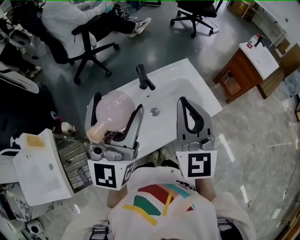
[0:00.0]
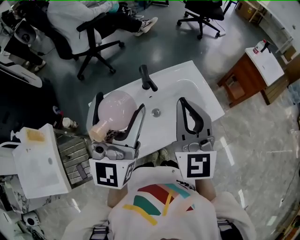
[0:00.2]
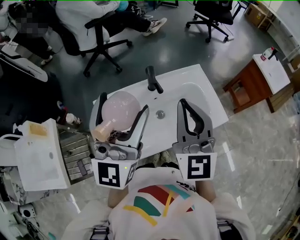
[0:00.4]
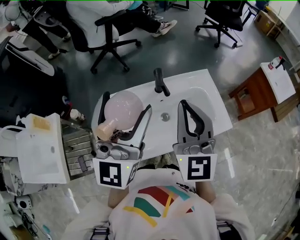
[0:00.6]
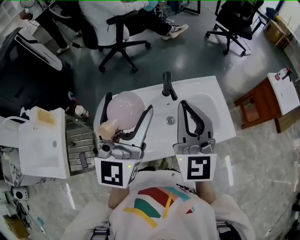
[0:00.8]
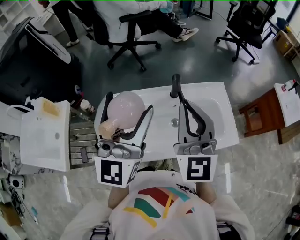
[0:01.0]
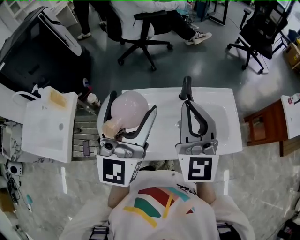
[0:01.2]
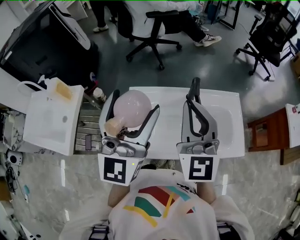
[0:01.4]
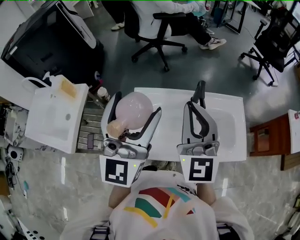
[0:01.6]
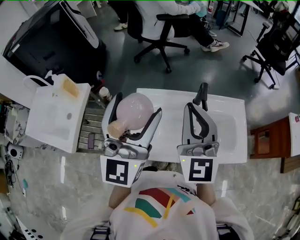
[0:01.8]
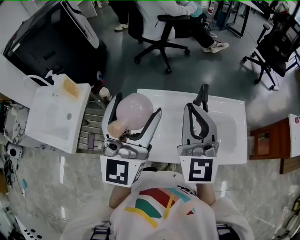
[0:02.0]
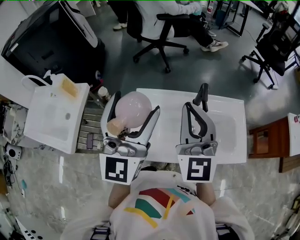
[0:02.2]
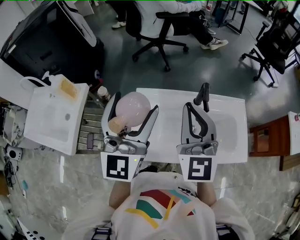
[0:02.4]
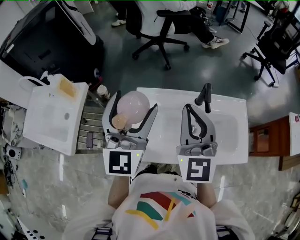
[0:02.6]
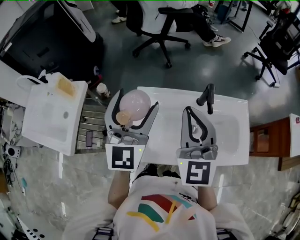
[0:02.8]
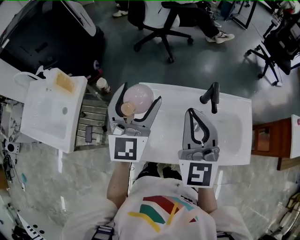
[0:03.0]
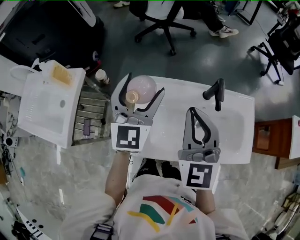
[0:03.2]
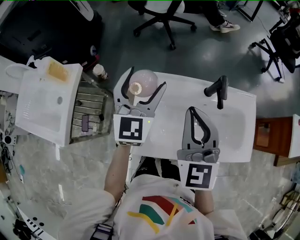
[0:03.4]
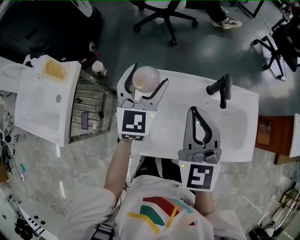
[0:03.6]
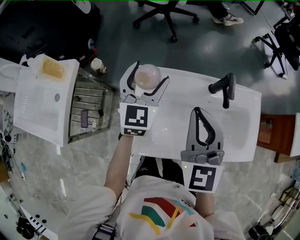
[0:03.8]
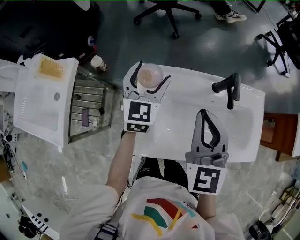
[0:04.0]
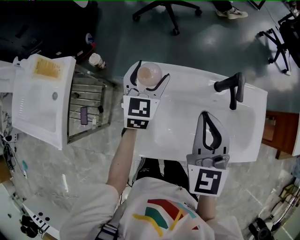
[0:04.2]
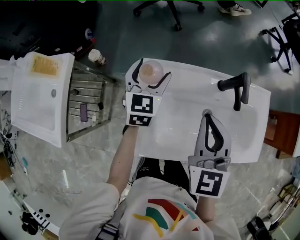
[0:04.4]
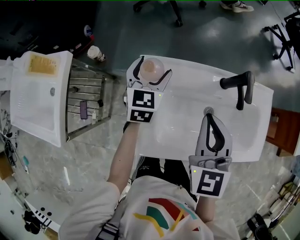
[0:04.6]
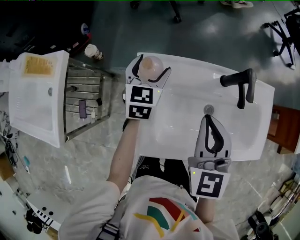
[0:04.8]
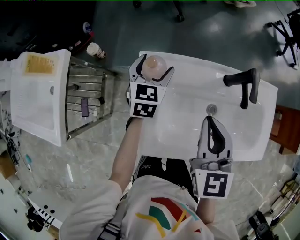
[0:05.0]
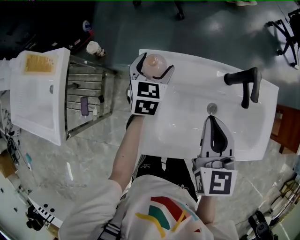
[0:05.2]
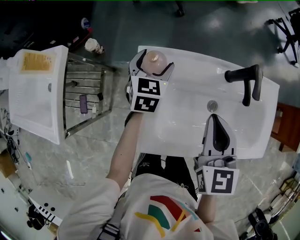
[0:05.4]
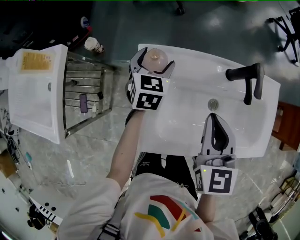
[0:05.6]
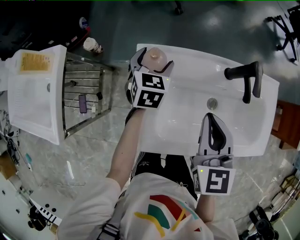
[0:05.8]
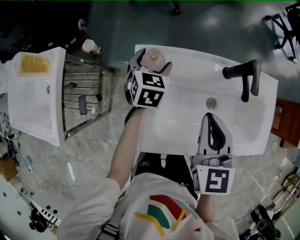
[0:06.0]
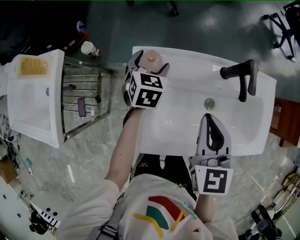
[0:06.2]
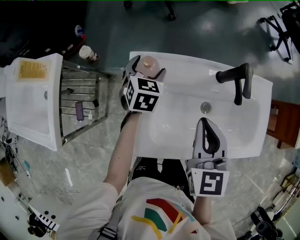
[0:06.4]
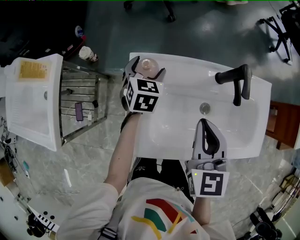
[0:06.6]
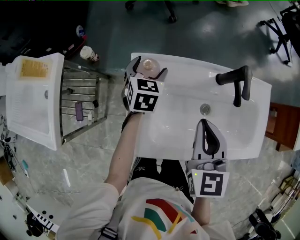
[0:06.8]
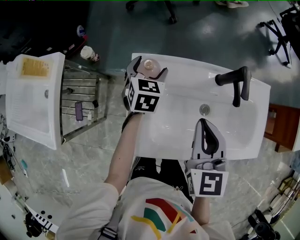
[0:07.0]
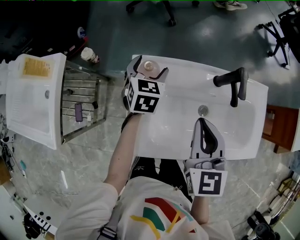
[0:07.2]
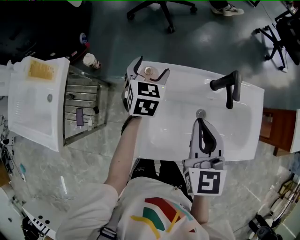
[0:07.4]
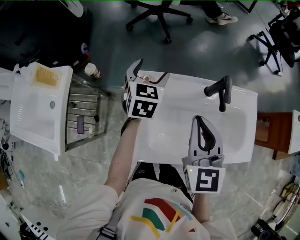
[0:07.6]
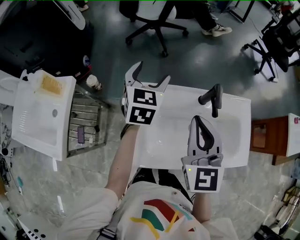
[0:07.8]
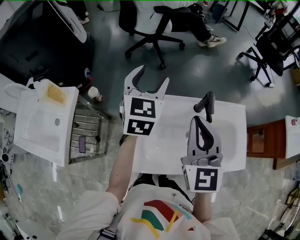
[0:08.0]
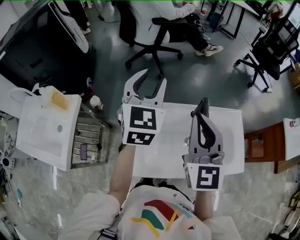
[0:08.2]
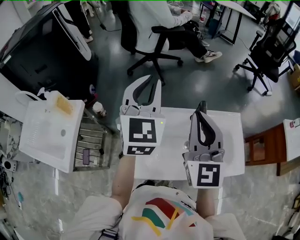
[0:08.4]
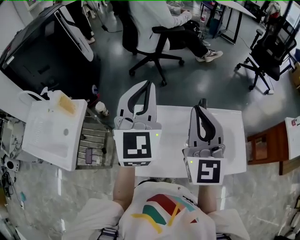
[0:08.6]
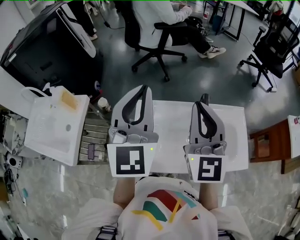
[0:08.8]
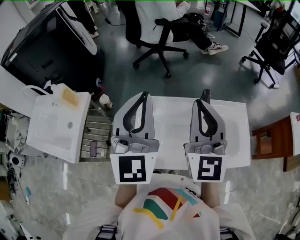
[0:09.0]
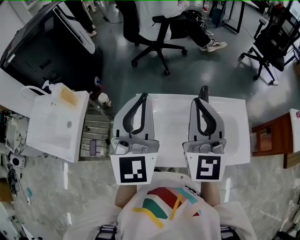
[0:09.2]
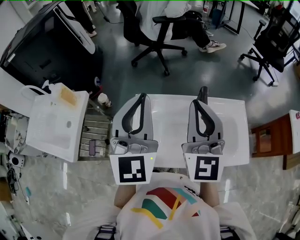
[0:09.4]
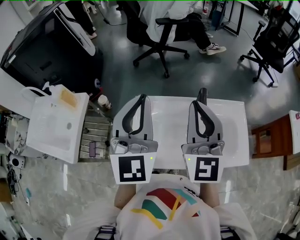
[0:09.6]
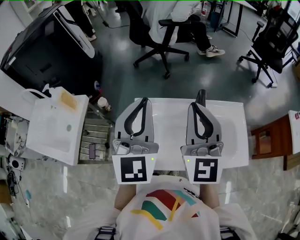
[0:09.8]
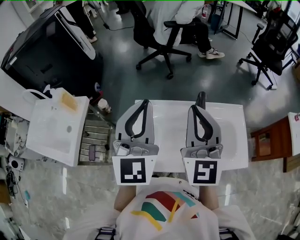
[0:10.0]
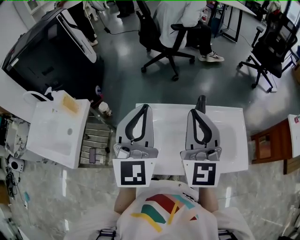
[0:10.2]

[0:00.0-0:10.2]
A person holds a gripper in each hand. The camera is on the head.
0:00.0 to 0:01.4: The left gripper ends up approximately 10 cm from where it was, and changes its angle by some 30 degrees; the right gripper shifts by approximately 10 cm, and swivels approximately 30 degrees.
0:01.4 to 0:03.0: The right gripper goes approximately 10 cm downward and to the left; the left gripper moves downward, forward and to the left, some 15 cm.
0:03.0 to 0:04.4: The right gripper heads downward, covering about 10 cm. The left gripper moves downward and forward, roughly 25 cm, and swivels approximately 30 degrees.
0:04.4 to 0:05.8: Both grippers move downward, some 5 cm.
0:05.8 to 0:07.2: The grippers move only a little.
0:07.2 to 0:08.8: The right gripper is displaced upward by roughly 20 cm, and points its fingers about 30 degrees further upward, while the left gripper heads upward, covering roughly 40 cm, tilts its fingers about 50 degrees upward, and closes up.
0:08.8 to 0:10.2: There are only small adjustments of the grippers.

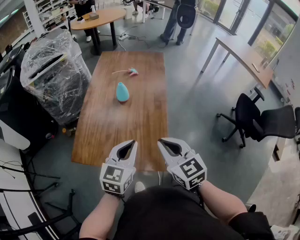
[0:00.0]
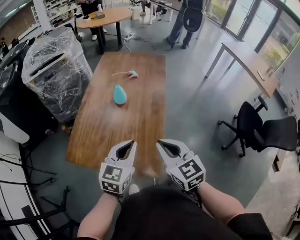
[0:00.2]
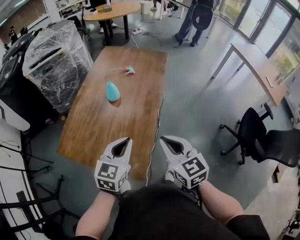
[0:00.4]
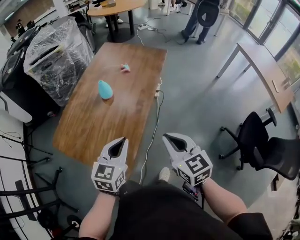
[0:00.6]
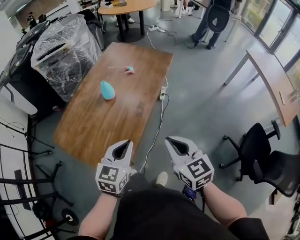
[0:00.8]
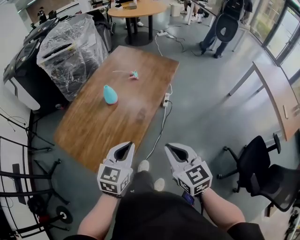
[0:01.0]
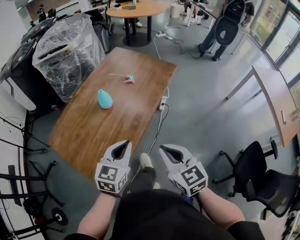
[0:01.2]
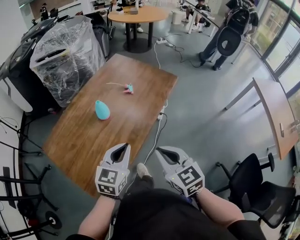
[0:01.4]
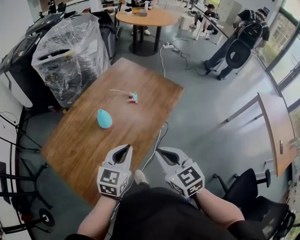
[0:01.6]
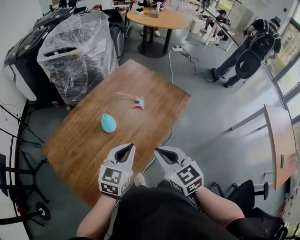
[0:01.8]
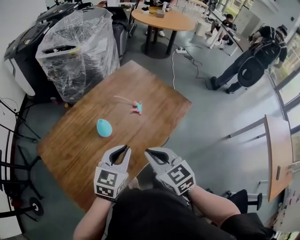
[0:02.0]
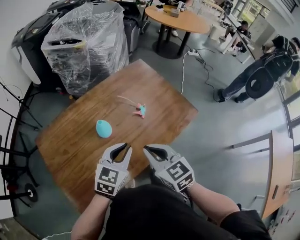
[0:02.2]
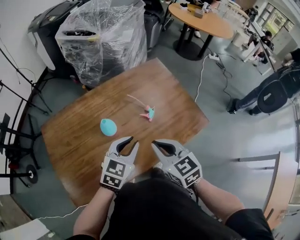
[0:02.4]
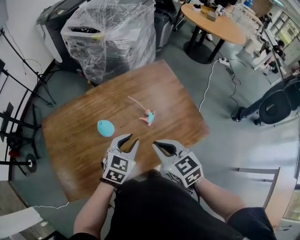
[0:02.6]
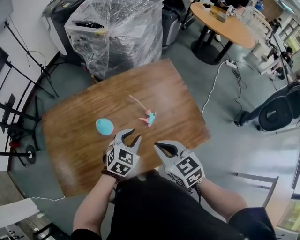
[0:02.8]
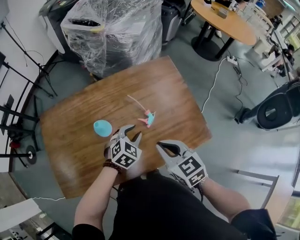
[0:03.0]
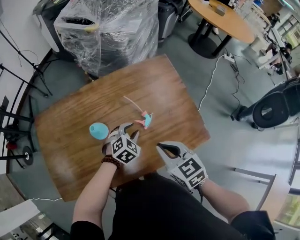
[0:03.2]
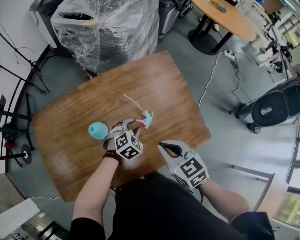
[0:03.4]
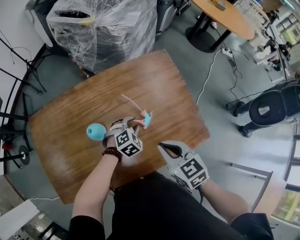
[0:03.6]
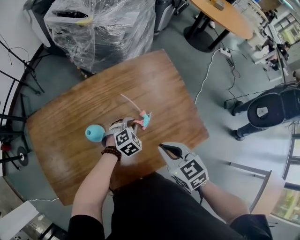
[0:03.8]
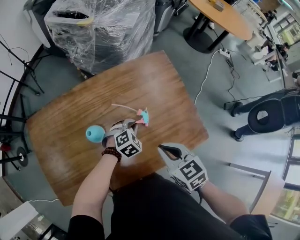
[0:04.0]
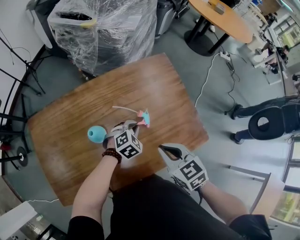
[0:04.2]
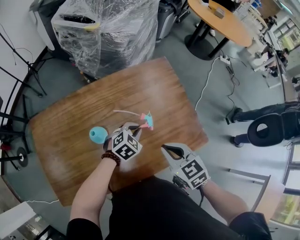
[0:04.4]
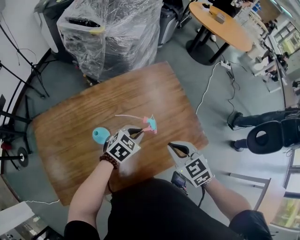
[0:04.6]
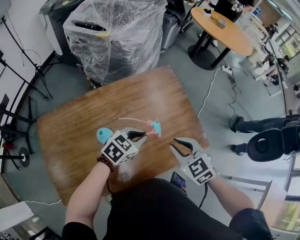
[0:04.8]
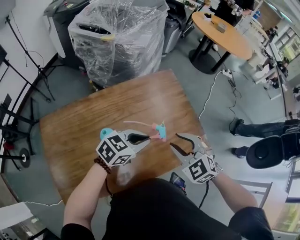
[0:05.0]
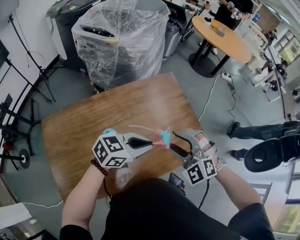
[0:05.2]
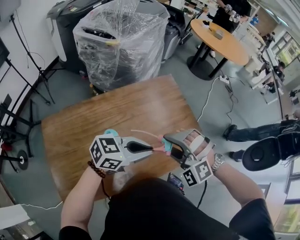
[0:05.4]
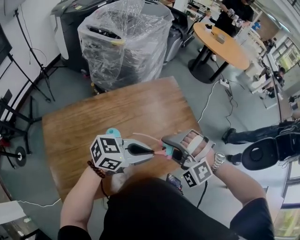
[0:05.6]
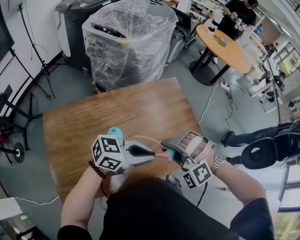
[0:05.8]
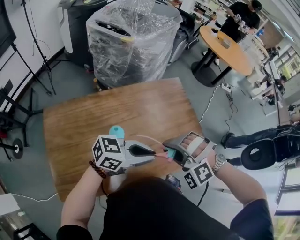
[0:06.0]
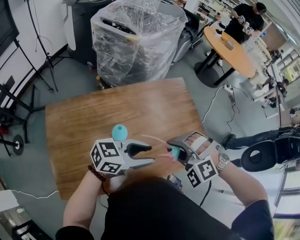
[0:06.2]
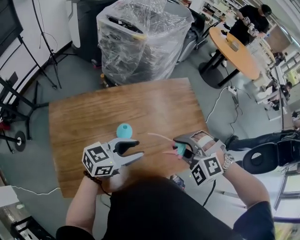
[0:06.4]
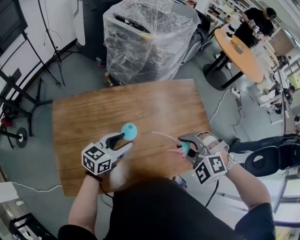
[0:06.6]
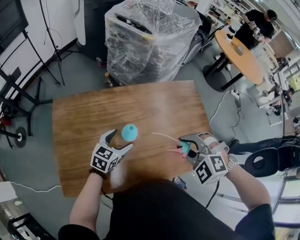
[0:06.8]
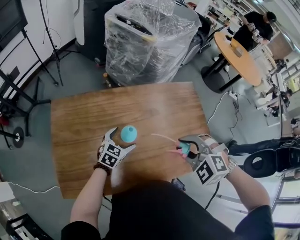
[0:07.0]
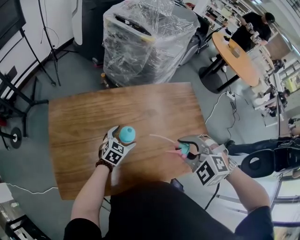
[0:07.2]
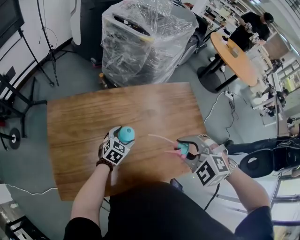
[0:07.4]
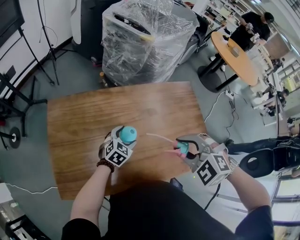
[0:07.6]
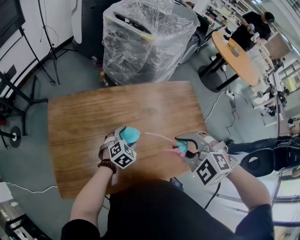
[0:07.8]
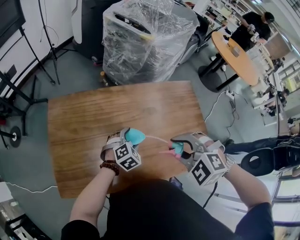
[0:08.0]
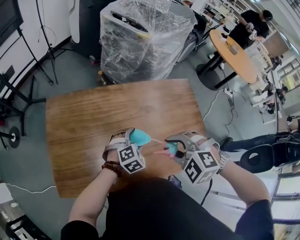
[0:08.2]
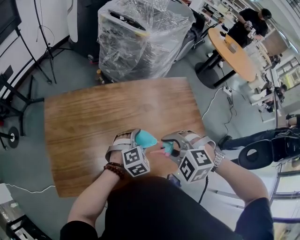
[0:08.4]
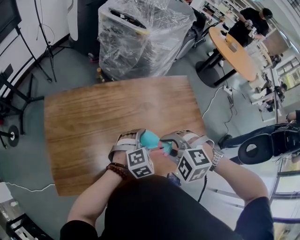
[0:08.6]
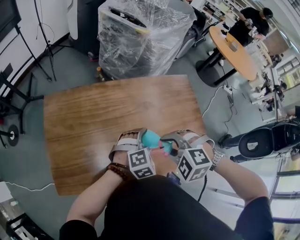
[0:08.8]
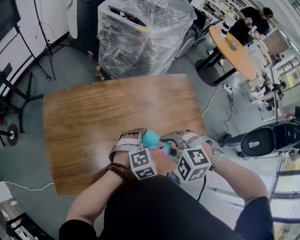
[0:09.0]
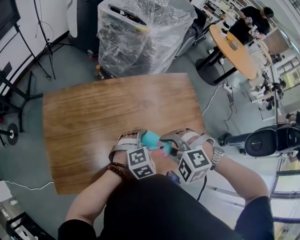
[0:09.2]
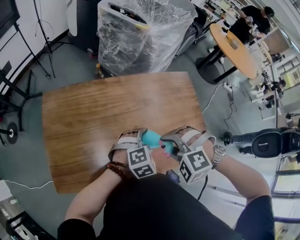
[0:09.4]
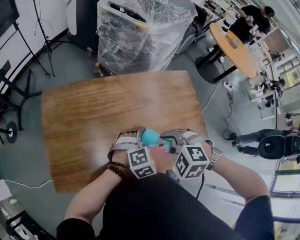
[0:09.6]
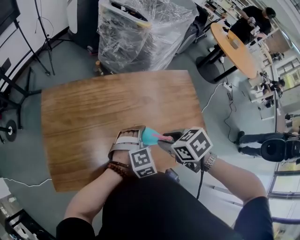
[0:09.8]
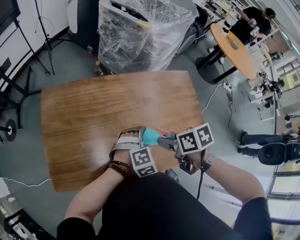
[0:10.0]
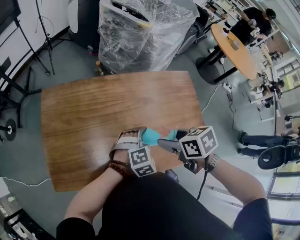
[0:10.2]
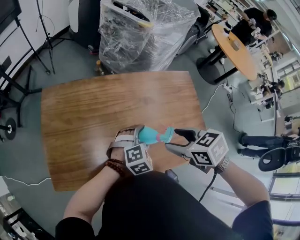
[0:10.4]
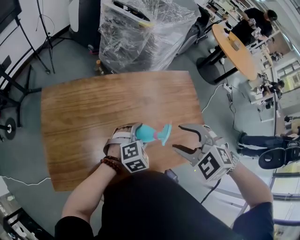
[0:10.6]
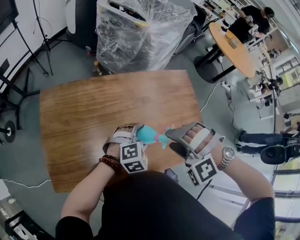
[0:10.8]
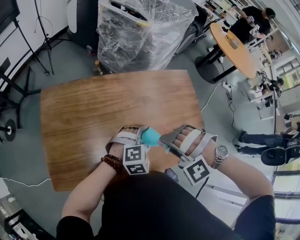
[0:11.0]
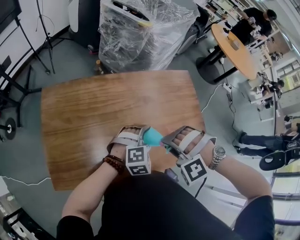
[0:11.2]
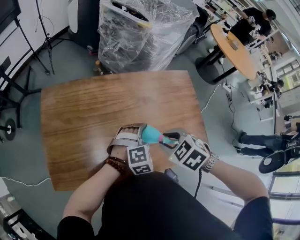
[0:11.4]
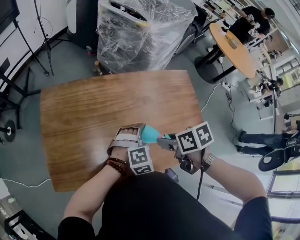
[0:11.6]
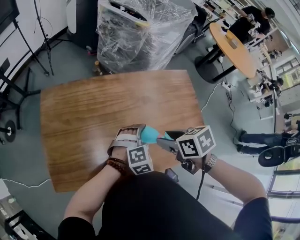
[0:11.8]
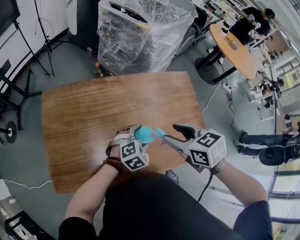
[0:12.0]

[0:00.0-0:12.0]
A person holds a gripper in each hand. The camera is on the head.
0:00.0 to 0:01.6: The right gripper shifts by roughly 30 cm, and turns by some 30 degrees. Meanwhile the left gripper shifts by about 30 cm, and changes its angle by approximately 30 degrees.
0:01.6 to 0:03.0: The right gripper shifts by some 25 cm, and turns by approximately 40 degrees. Meanwhile the left gripper changes place by some 30 cm, and rotates about 40 degrees.
0:04.4 to 0:06.0: The right gripper moves roughly 10 cm, rotates around the line of its fingers by roughly 80 degrees, counterclockwise from behind, and opens its fingers. Meanwhile the left gripper moves upward, roughly 20 cm, and tilts its fingers about 40 degrees upward.
0:06.0 to 0:07.6: The left gripper is displaced downward by roughly 20 cm, points its fingers some 30 degrees further downward, and opens up, while the right gripper changes place by roughly 5 cm, and changes its angle by approximately 30 degrees.
0:07.6 to 0:09.0: The right gripper shifts about 5 cm downward; the left gripper travels to the right, upward and backward by roughly 15 cm, and changes its angle by roughly 30 degrees.
0:09.0 to 0:10.4: The right gripper twists some 60 degrees clockwise, seen from behind, and opens.
0:10.4 to 0:12.0: The right gripper swings up and down, roughly 10 cm each way, with 2 reversals, and closes, then reopens.

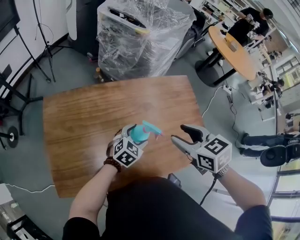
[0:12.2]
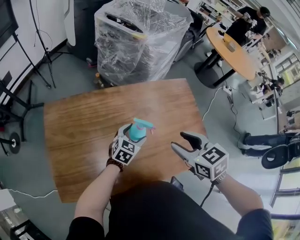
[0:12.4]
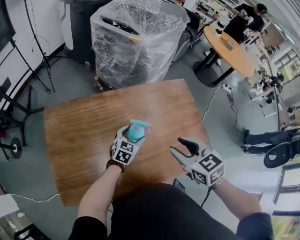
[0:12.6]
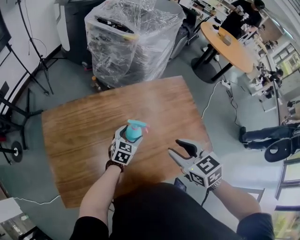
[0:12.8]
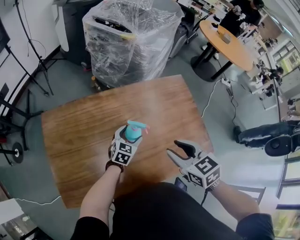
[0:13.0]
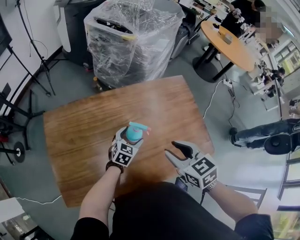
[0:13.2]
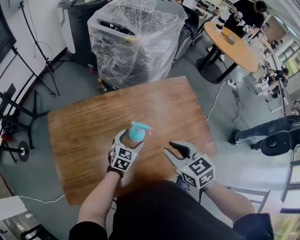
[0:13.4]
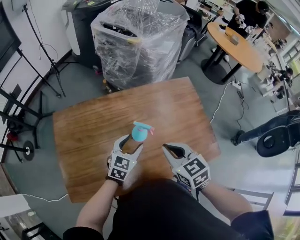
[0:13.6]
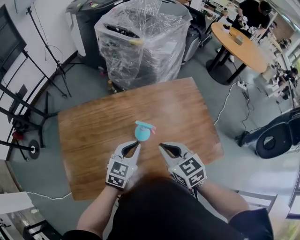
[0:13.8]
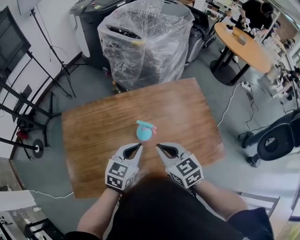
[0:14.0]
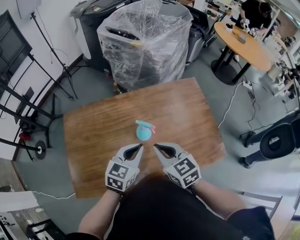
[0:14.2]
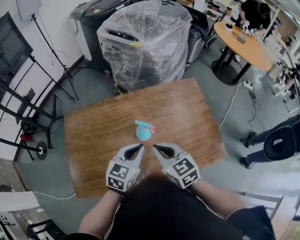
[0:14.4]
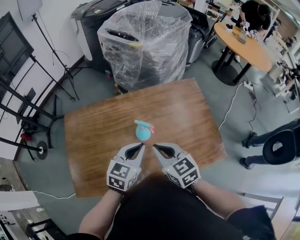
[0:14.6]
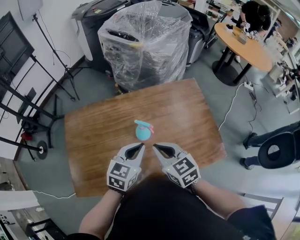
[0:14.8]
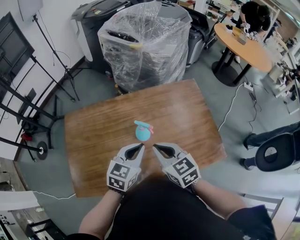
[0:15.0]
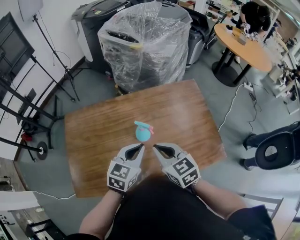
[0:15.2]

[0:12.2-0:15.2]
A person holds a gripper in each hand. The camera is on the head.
0:12.2 to 0:13.8: The left gripper goes some 10 cm upward, and closes up; the right gripper heads downward, covering roughly 5 cm, and closes.
0:13.8 to 0:15.2: The grippers move only a little.
